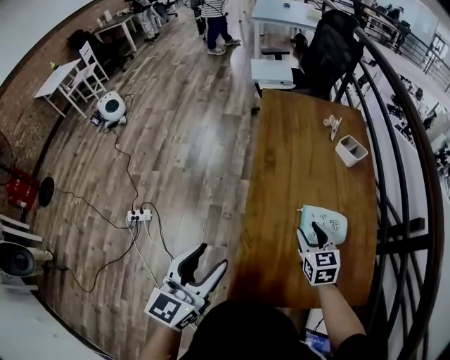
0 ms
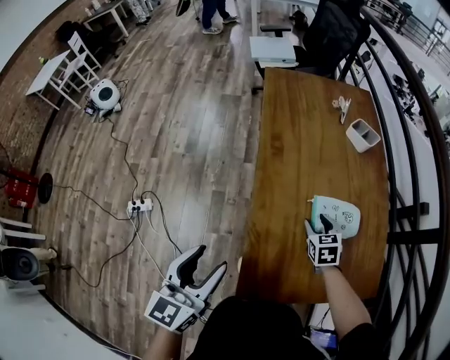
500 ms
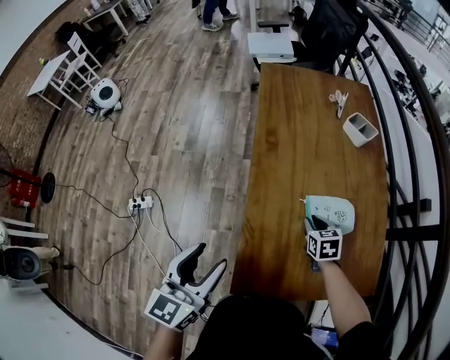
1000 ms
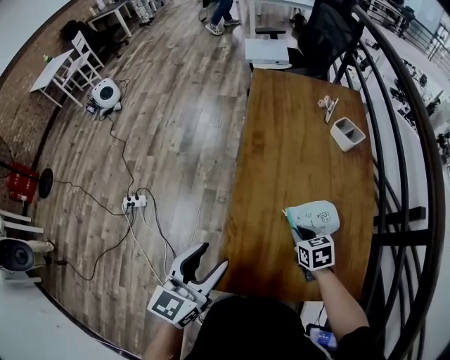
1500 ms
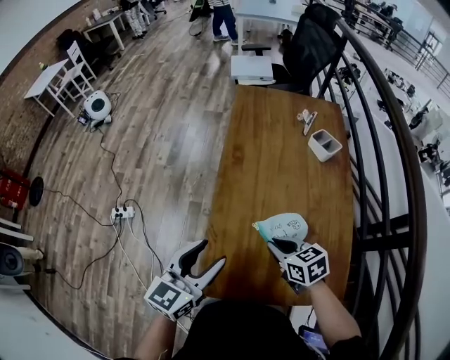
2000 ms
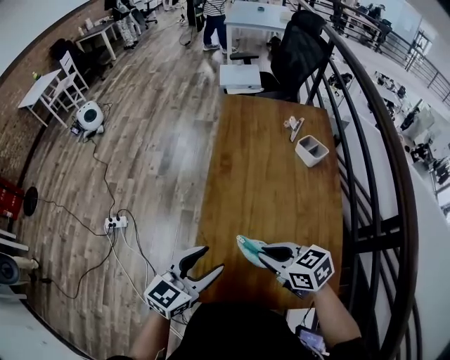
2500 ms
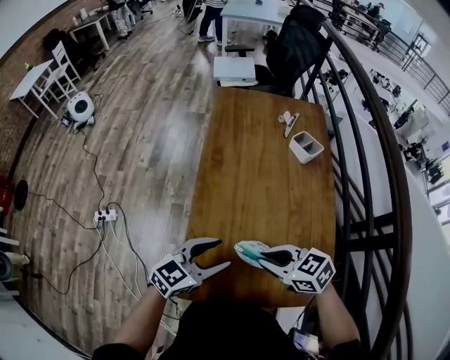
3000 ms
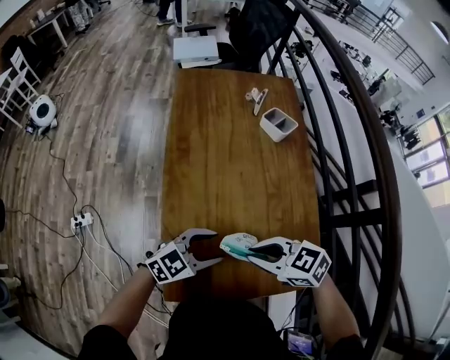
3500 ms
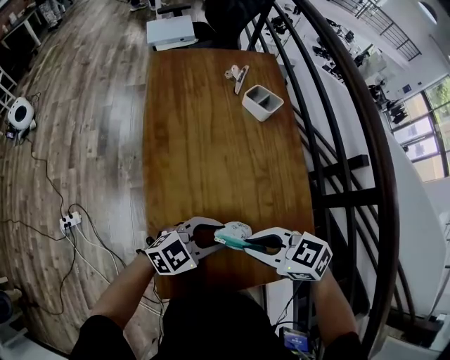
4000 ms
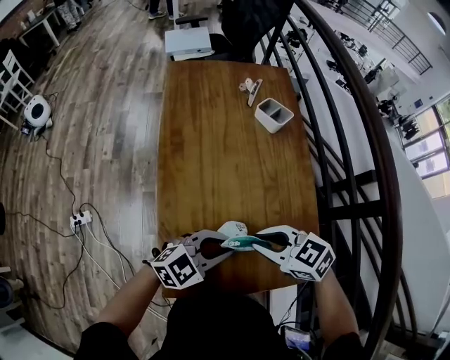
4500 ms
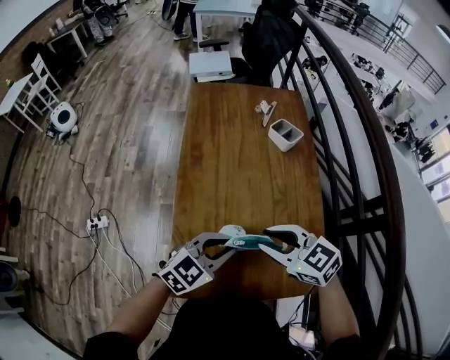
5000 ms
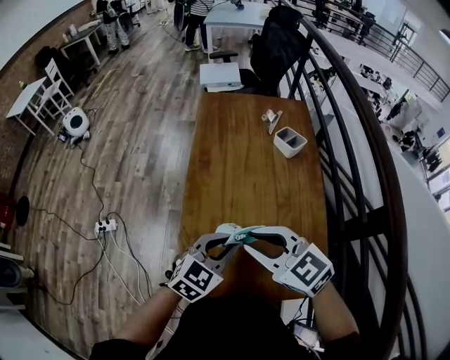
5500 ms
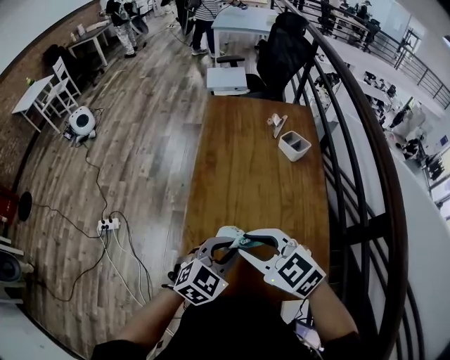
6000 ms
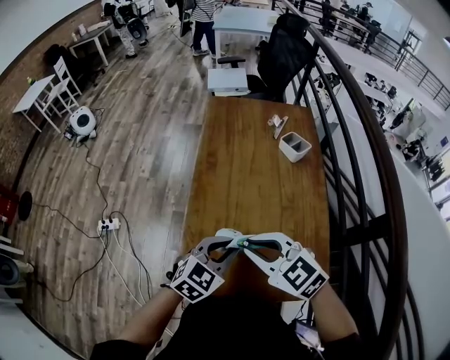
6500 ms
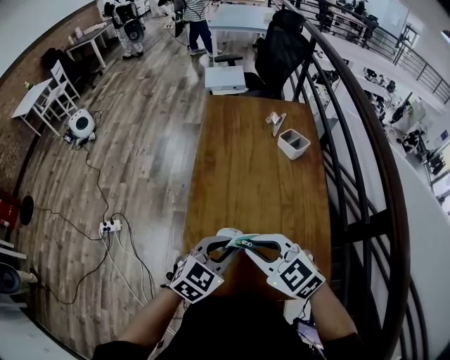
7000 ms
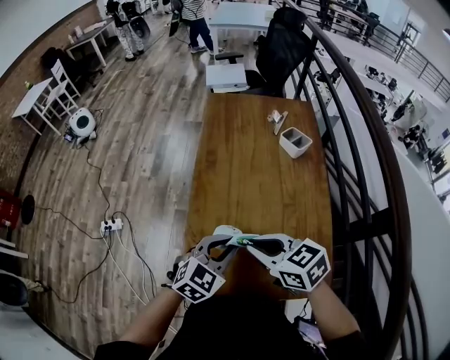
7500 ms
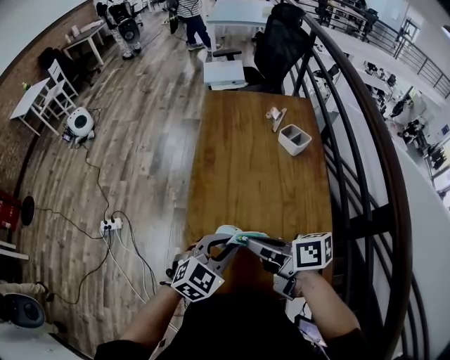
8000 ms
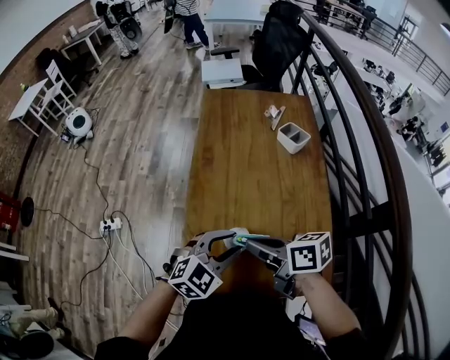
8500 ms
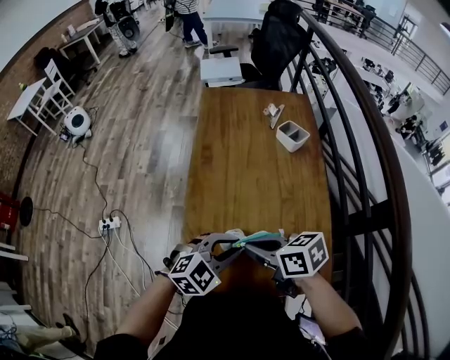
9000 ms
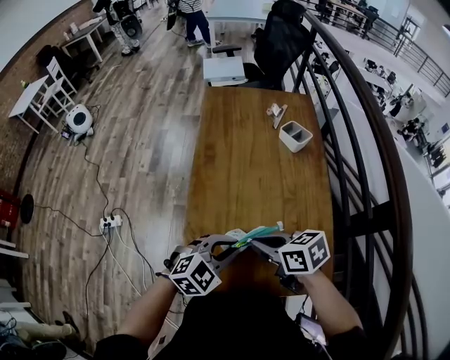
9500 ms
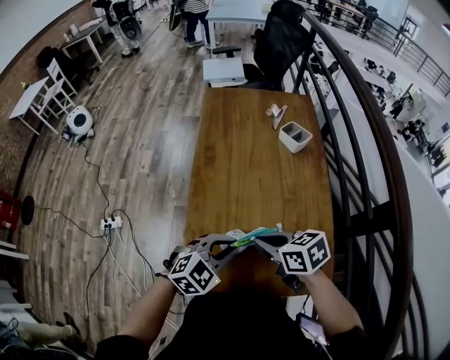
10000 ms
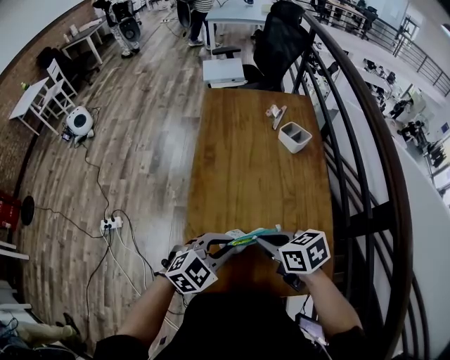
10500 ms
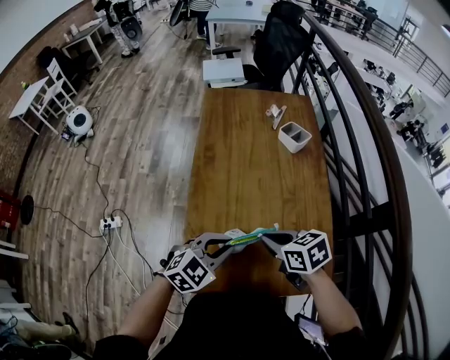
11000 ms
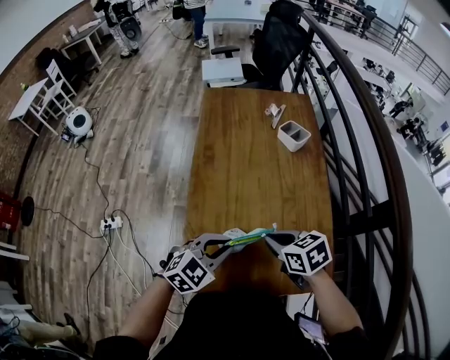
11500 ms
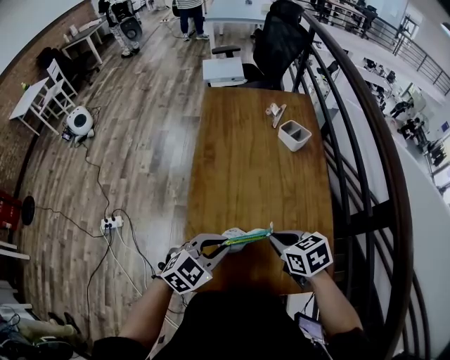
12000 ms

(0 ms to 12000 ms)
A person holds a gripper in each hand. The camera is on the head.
0 ms - 2000 ms: The left gripper is displaced to the right by roughly 10 cm; the right gripper is displaced backward by roughly 5 cm, goes downward and returns, about 10 cm each way, swivels roughly 30 degrees, and closes.
2000 ms - 4000 ms: The right gripper moves about 10 cm. The left gripper shifts by about 20 cm, changes its angle by about 60 degrees, and closes.
4000 ms - 6000 ms: Both grippers move upward, some 10 cm. The right gripper swivels roughly 30 degrees; the left gripper changes its angle by some 40 degrees.
6000 ms - 8000 ms: The right gripper rolls clockwise, seen from behind, by roughly 60 degrees.
8000 ms - 10000 ms: The right gripper moves some 5 cm, and turns by approximately 30 degrees.
10000 ms - 12000 ms: The right gripper moves to the right, about 5 cm.

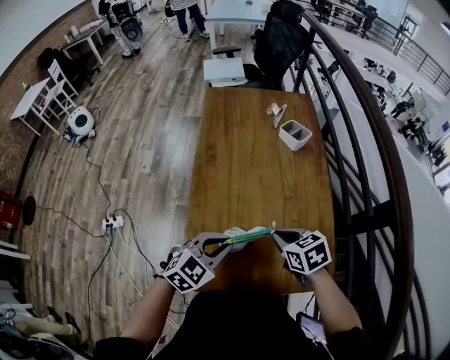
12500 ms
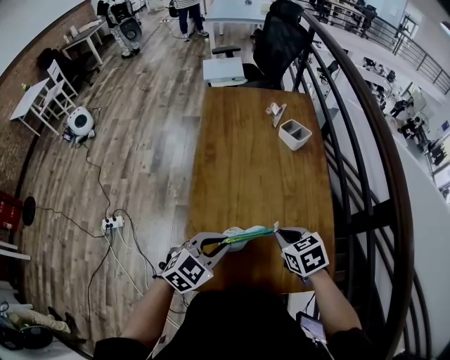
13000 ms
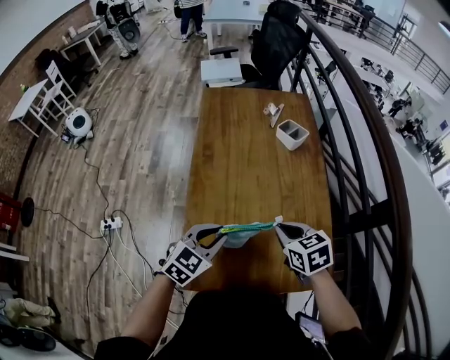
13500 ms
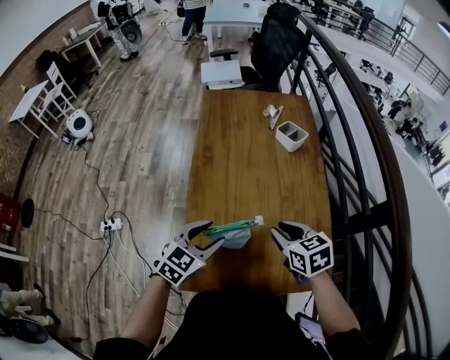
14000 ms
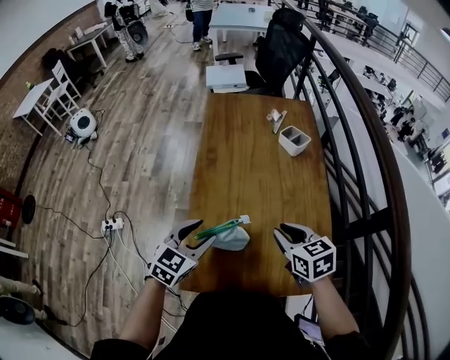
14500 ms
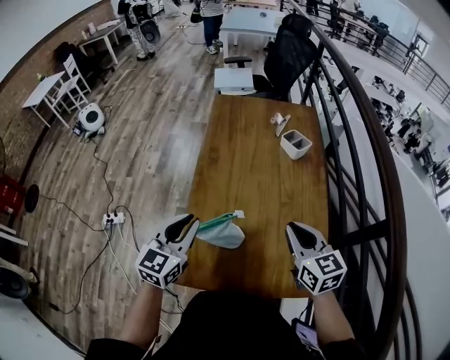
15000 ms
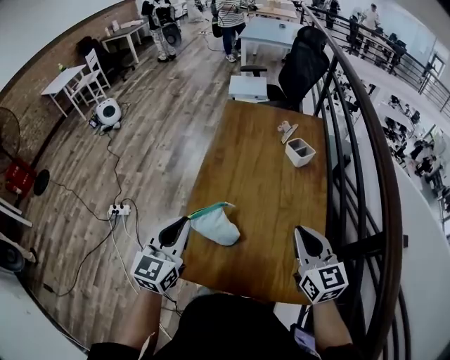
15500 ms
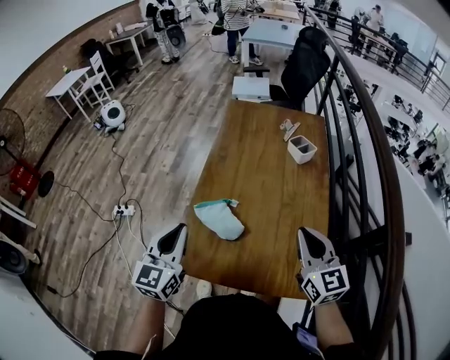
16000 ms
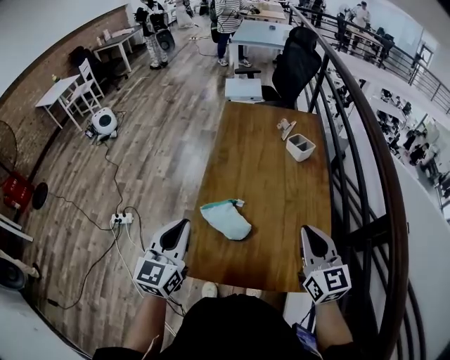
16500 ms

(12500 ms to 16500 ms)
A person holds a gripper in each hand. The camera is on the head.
12500 ms - 14500 ms: The left gripper travels to the left by approximately 5 cm, and opens its fingers; the right gripper is displaced upward by approximately 5 cm.
14500 ms - 16500 ms: The left gripper heads upward, backward and to the left, covering approximately 15 cm, rotates some 30 degrees, and closes up; the right gripper heads upward and backward, covering about 10 cm, and tips its fingers upward by some 30 degrees.

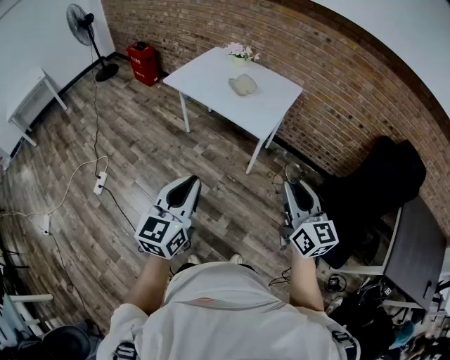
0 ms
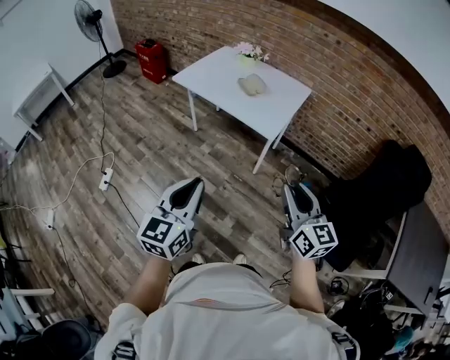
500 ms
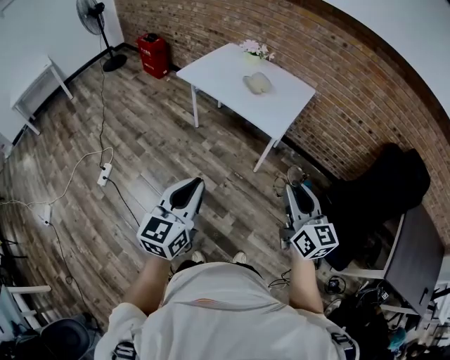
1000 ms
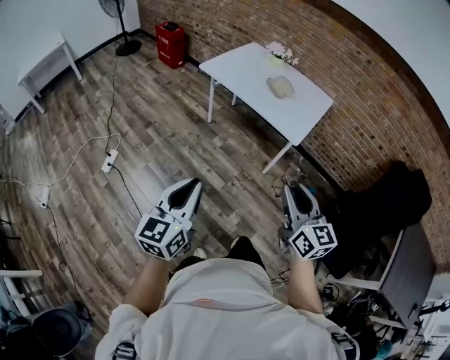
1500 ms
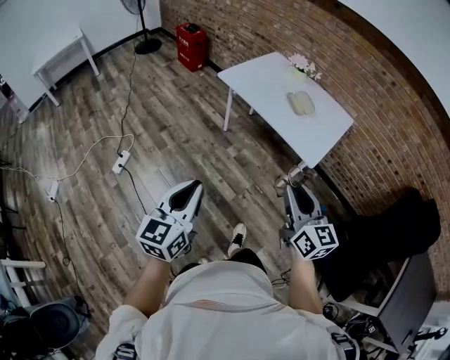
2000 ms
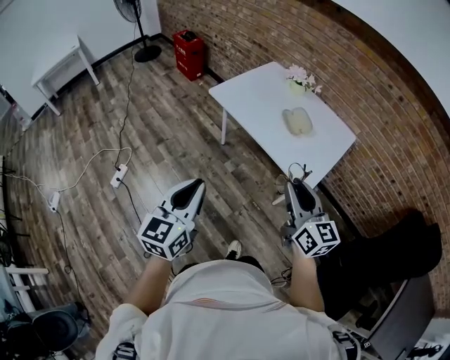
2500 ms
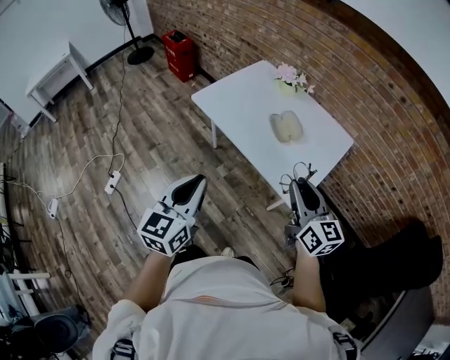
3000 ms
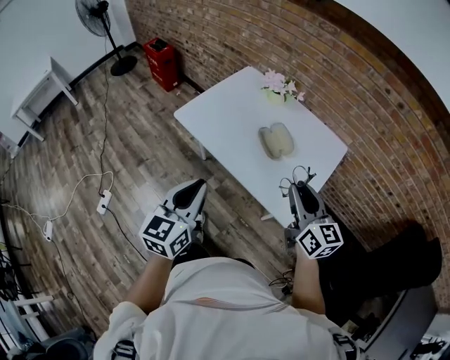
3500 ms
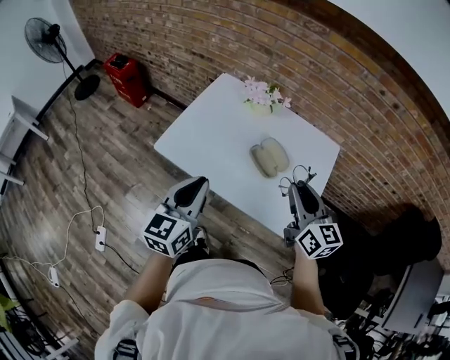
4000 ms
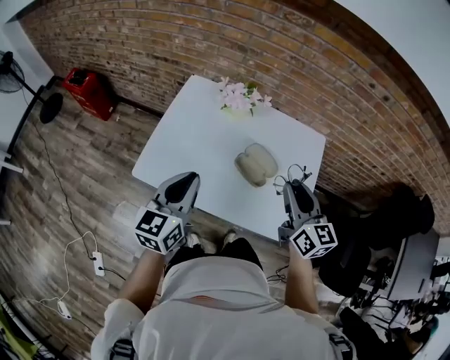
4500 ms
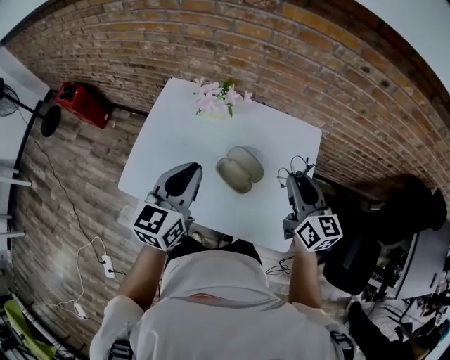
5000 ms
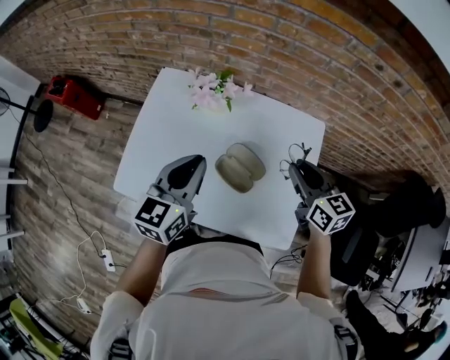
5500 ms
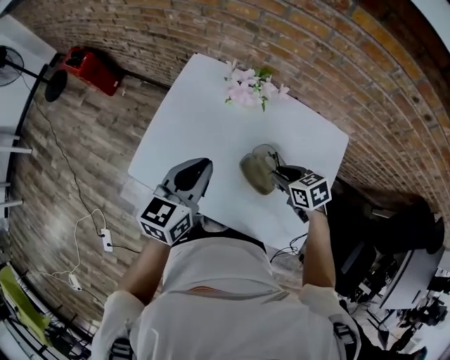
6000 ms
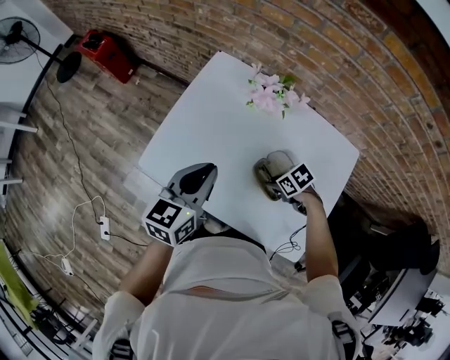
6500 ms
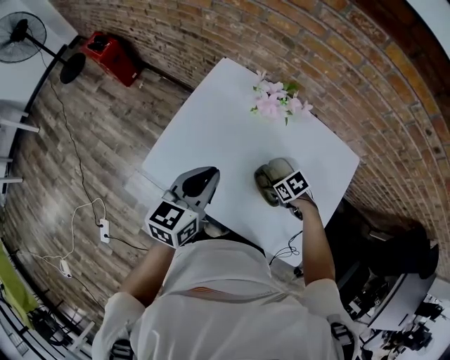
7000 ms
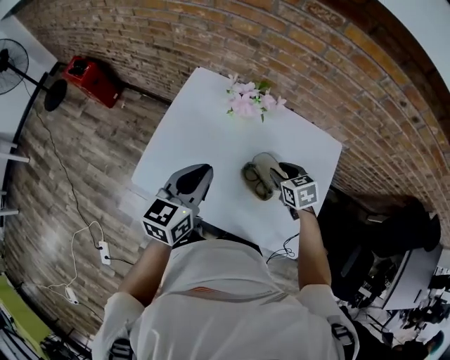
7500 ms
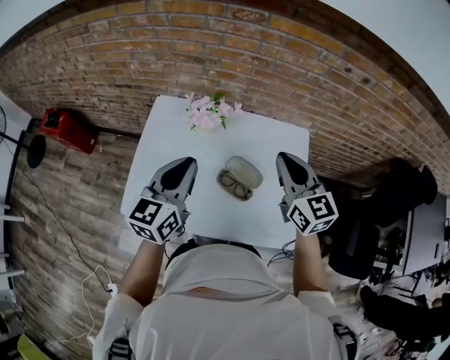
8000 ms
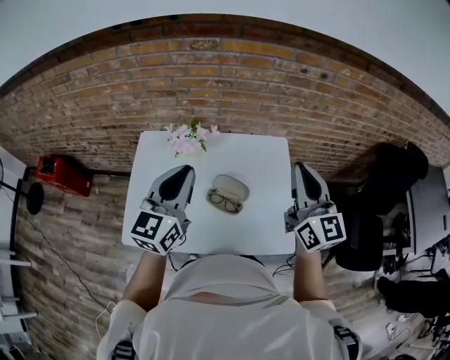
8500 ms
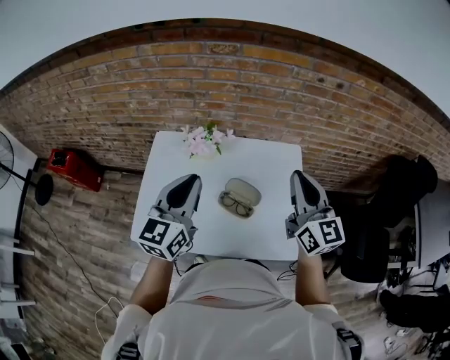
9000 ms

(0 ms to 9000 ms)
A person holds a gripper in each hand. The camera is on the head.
0 ms - 2000 ms: The right gripper goes some 20 cm to the left and forward; the left gripper goes about 20 cm to the left.
2000 ms - 4500 ms: The pair of grippers is taken some 60 cm. The right gripper rotates about 30 degrees; the left gripper turns by roughly 30 degrees.
4500 ms - 7000 ms: The left gripper changes place by approximately 10 cm. The right gripper travels downward by approximately 30 cm, and points its fingers approximately 60 degrees further downward.
7000 ms - 9000 ms: The right gripper shifts approximately 40 cm upward, points its fingers approximately 70 degrees further upward, and closes. Meanwhile the left gripper is displaced upward by roughly 15 cm, and swivels approximately 30 degrees.

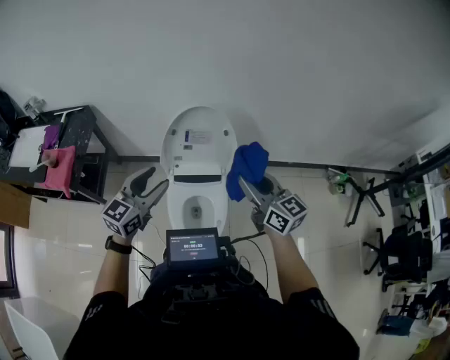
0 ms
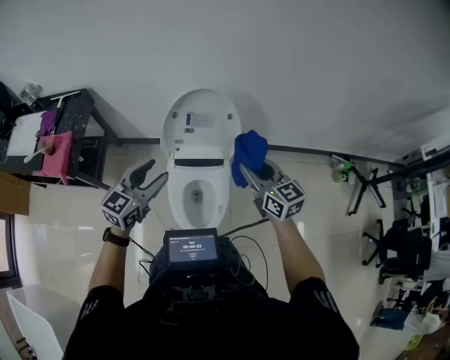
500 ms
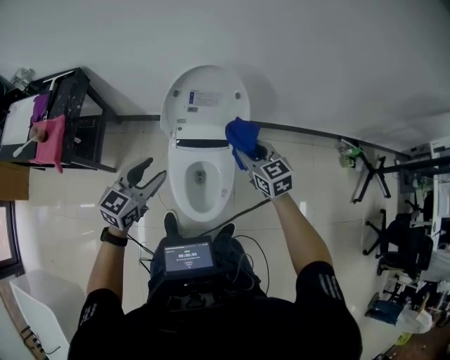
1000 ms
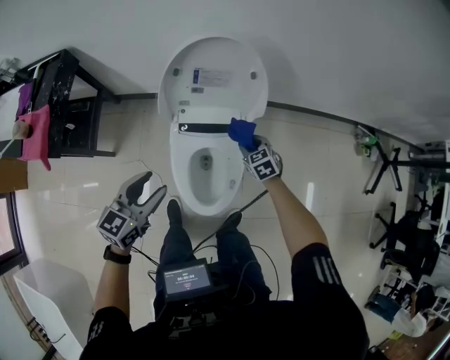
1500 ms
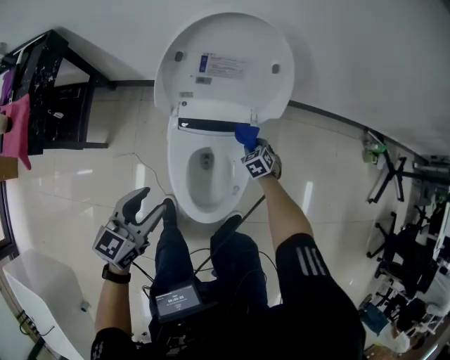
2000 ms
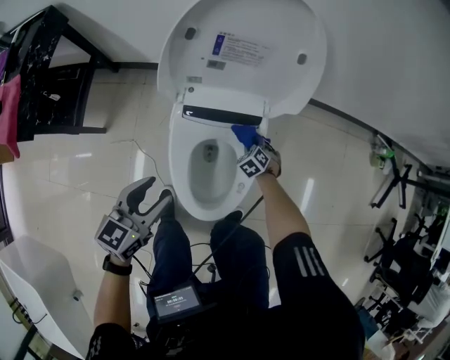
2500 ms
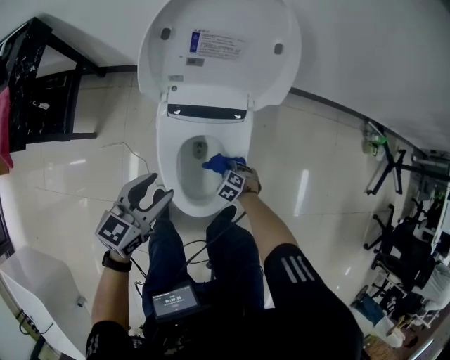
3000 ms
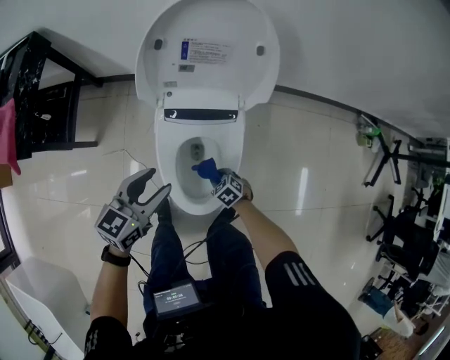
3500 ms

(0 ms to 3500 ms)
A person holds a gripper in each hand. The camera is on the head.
0 ms - 2000 ms: The right gripper is displaced downward by about 60 cm, and points its fingers approximately 60 degrees further downward. The left gripper heads downward, covering about 25 cm, and turns by some 20 degrees.
2000 ms - 3500 ms: The right gripper moves about 20 cm, and swivels approximately 20 degrees. Meanwhile the left gripper shifts by roughly 5 cm.
